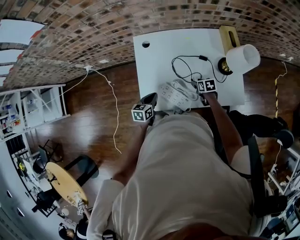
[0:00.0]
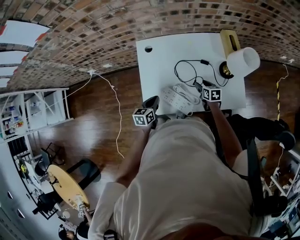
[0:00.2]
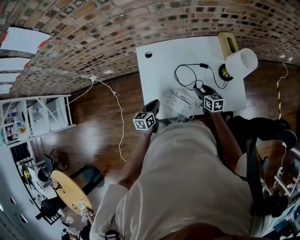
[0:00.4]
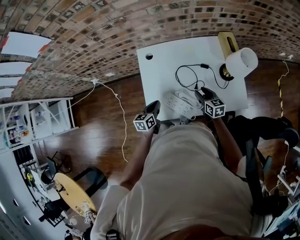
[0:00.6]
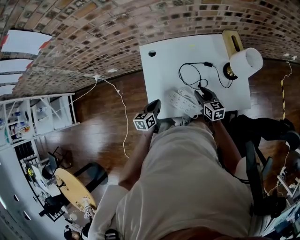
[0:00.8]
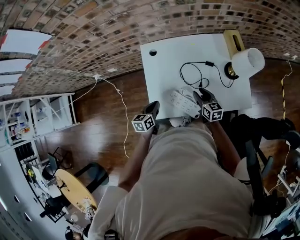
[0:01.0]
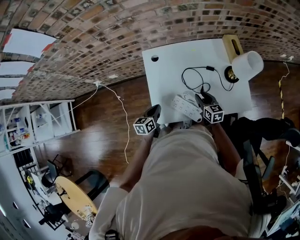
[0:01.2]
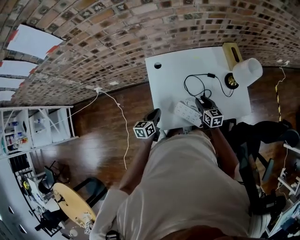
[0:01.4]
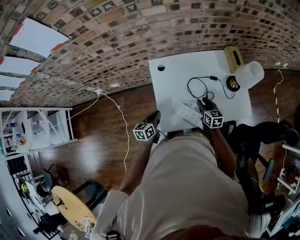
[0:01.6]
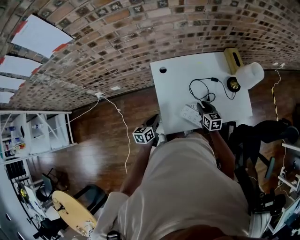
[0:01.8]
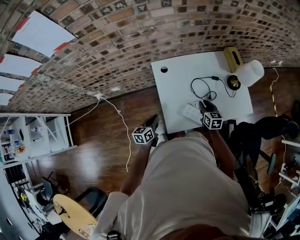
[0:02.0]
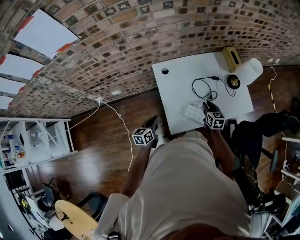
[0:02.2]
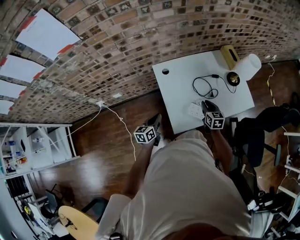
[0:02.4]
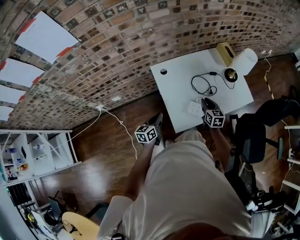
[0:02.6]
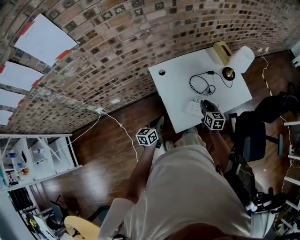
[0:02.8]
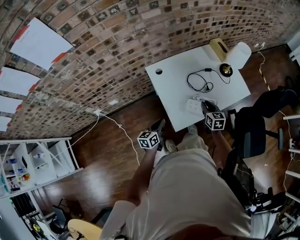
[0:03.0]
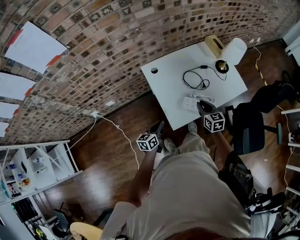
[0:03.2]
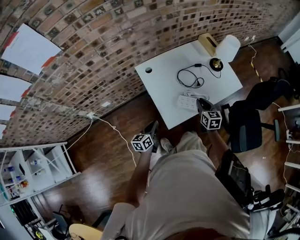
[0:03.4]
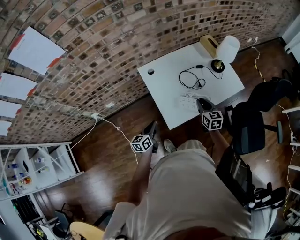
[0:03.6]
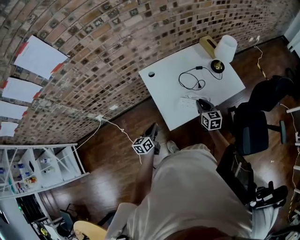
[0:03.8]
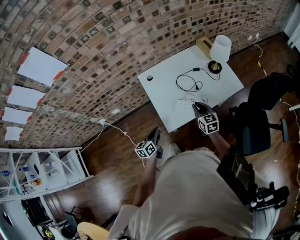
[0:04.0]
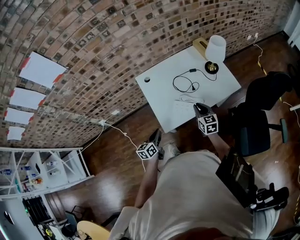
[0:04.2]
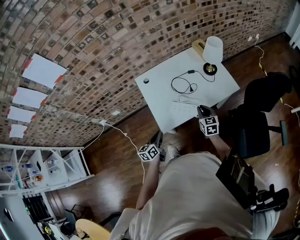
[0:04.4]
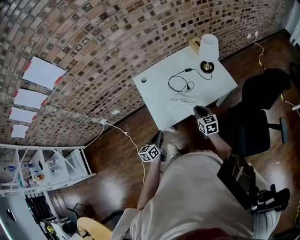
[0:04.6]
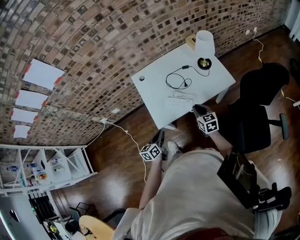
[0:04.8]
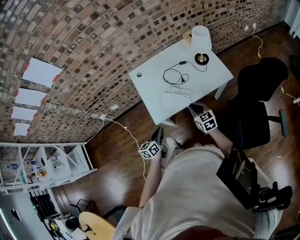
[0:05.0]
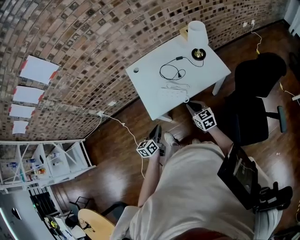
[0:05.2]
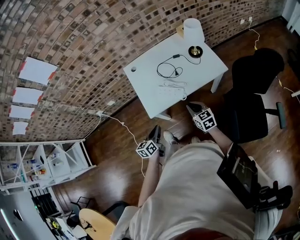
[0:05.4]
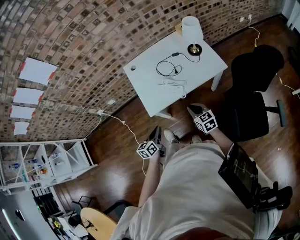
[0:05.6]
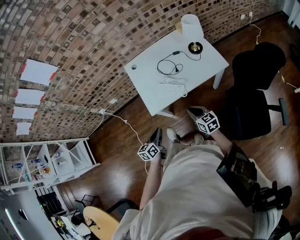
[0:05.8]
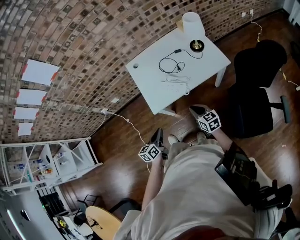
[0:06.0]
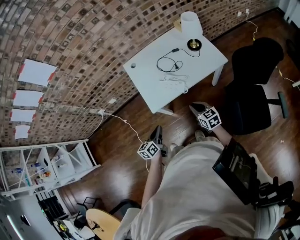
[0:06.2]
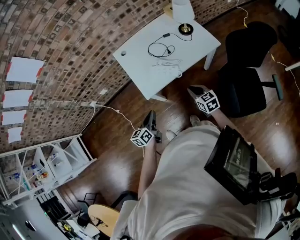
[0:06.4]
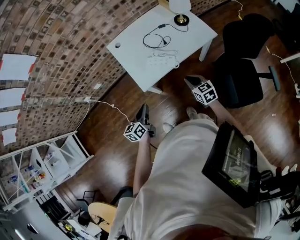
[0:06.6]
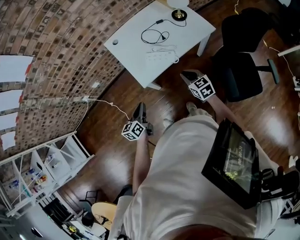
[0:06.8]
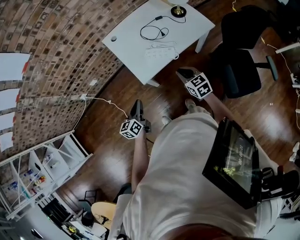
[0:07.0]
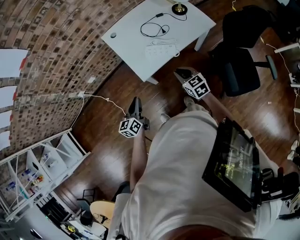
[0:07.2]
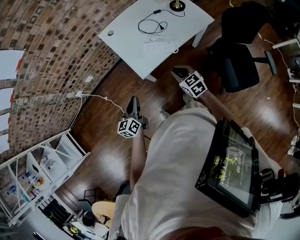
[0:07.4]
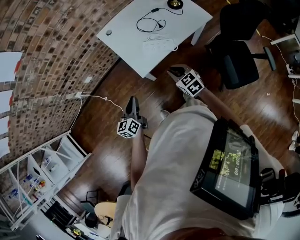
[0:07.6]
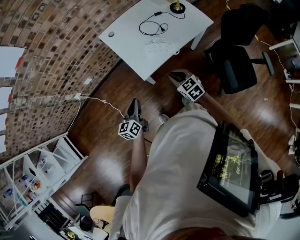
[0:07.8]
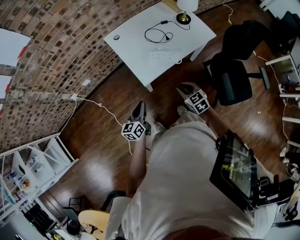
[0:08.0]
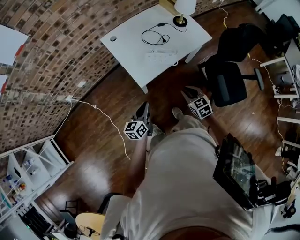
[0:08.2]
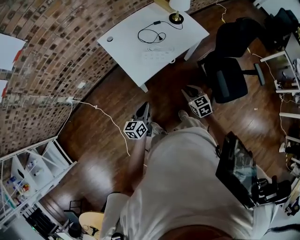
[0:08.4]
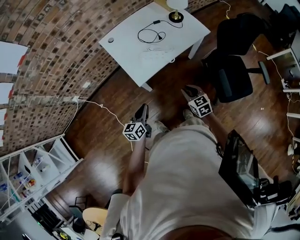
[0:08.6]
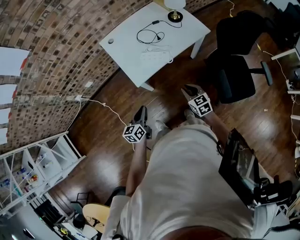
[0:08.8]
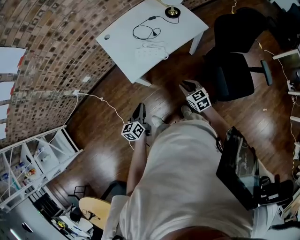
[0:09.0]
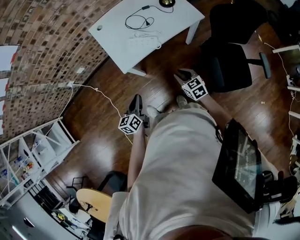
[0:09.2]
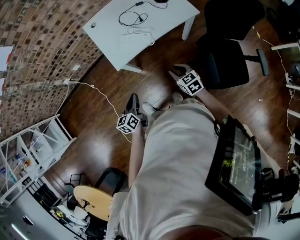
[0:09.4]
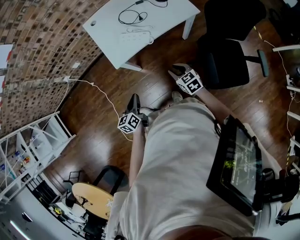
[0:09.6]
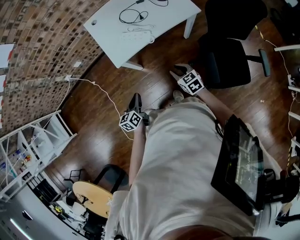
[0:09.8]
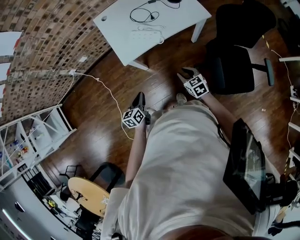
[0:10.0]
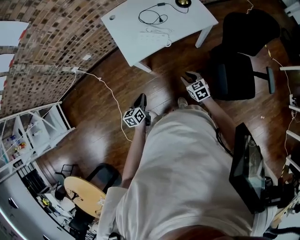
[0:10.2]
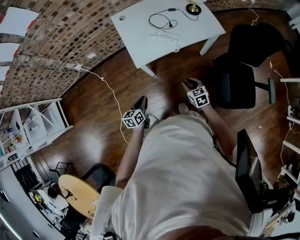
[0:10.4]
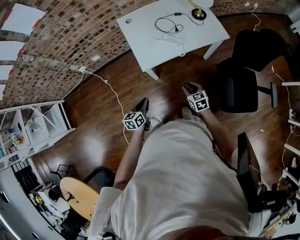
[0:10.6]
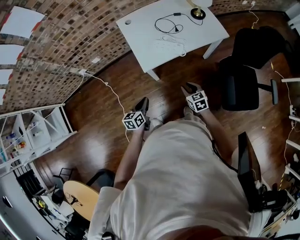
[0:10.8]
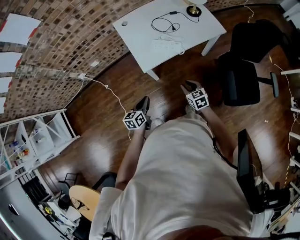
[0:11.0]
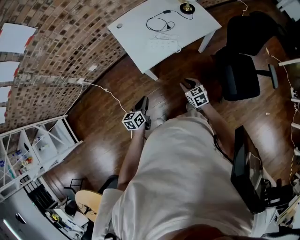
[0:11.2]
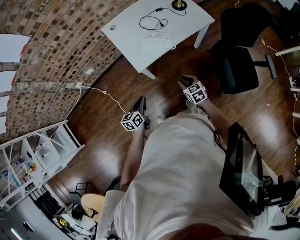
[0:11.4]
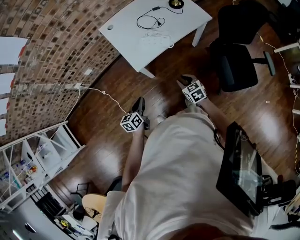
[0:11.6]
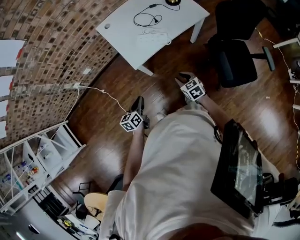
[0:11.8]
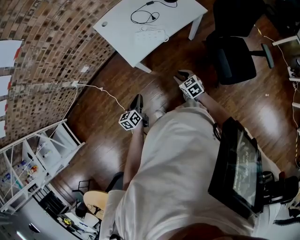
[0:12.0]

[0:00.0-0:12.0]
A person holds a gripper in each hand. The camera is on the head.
0.0 to 1.6 s: The left gripper travels to the left and upward by some 15 cm. The right gripper travels upward and to the left by approximately 20 cm, and turns by some 30 degrees.
1.6 to 3.0 s: The left gripper shifts approximately 10 cm backward and to the left; the right gripper travels backward by some 10 cm.
3.0 to 4.4 s: The right gripper goes approximately 15 cm to the right. Meanwhile the left gripper goes about 15 cm to the right and backward.
4.4 to 6.0 s: The right gripper travels backward by about 15 cm, and turns by approximately 20 degrees. Meanwhile the left gripper is displaced backward and to the right by about 15 cm.
6.0 to 7.6 s: The grippers both shift to the left by approximately 15 cm.
7.6 to 9.0 s: The two grippers go about 15 cm to the right and backward.
9.0 to 10.4 s: Both grippers travel together downward, roughly 5 cm.
10.4 to 12.0 s: Both grippers travel together to the left, some 5 cm.

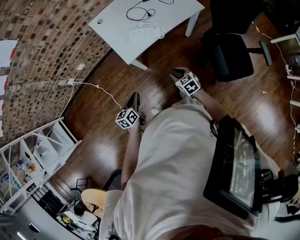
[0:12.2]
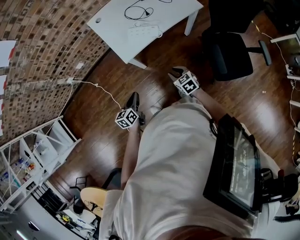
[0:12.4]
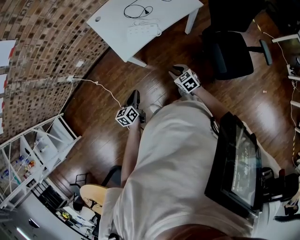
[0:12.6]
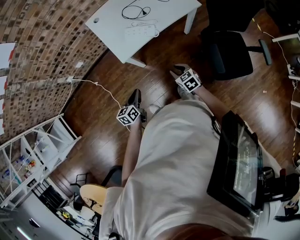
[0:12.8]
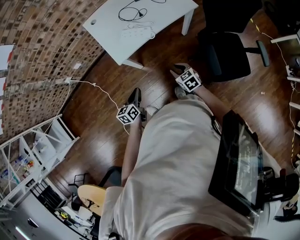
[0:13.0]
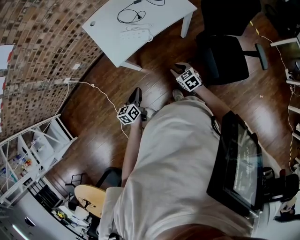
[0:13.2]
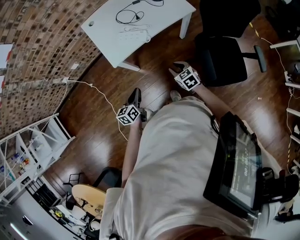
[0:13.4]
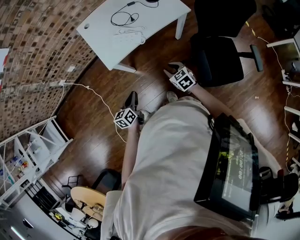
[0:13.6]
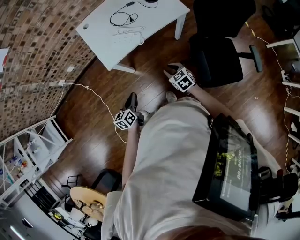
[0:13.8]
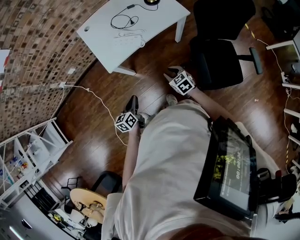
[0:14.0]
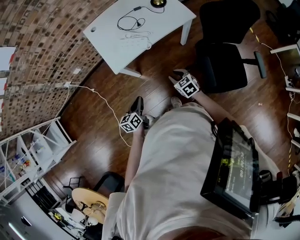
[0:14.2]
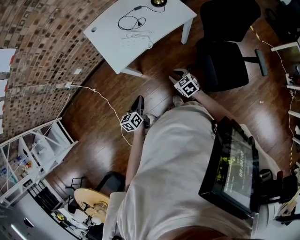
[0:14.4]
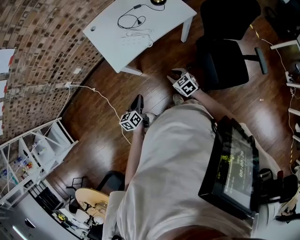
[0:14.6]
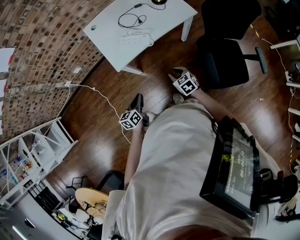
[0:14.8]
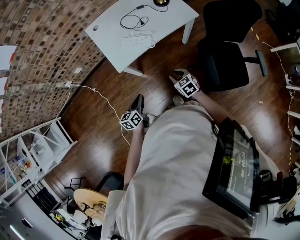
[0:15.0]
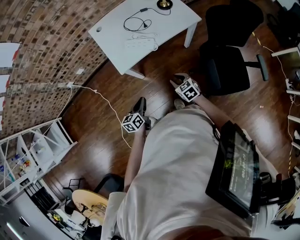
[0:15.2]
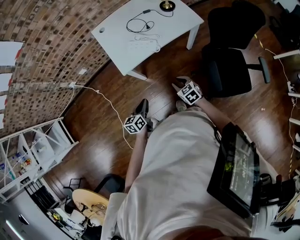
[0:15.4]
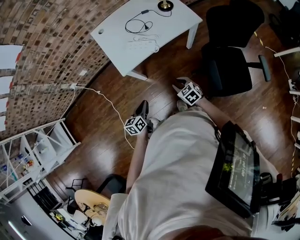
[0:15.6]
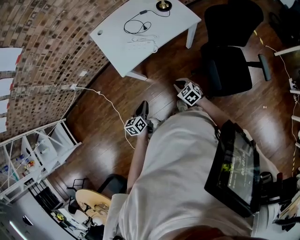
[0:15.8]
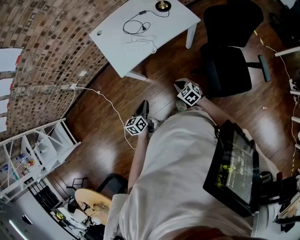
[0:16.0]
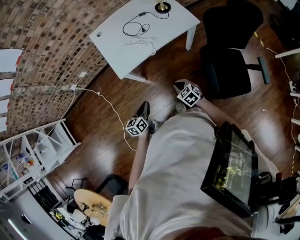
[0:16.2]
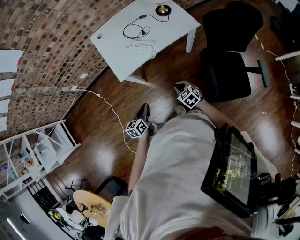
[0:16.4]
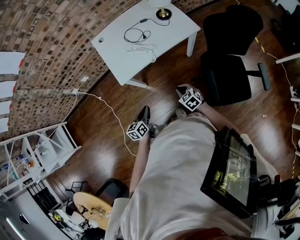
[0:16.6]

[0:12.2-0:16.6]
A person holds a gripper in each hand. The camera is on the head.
12.2 to 13.6 s: Both grippers travel together to the right, roughly 15 cm.
13.6 to 15.2 s: There are only small adjustments of the grippers.
15.2 to 16.6 s: Both grippers travel together to the right, approximately 5 cm. The right gripper closes.

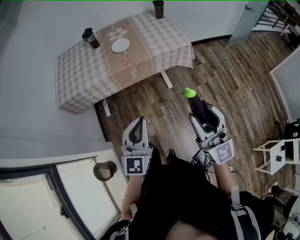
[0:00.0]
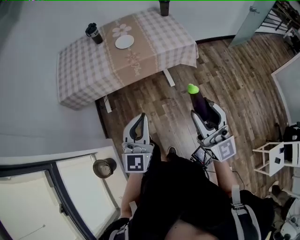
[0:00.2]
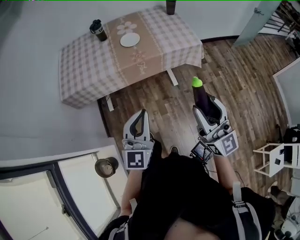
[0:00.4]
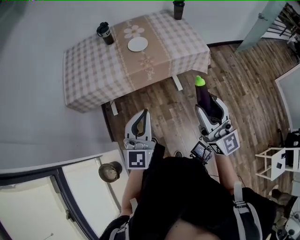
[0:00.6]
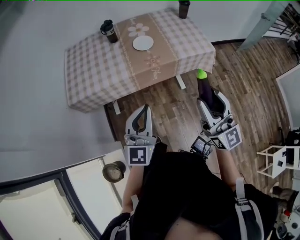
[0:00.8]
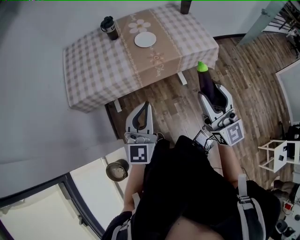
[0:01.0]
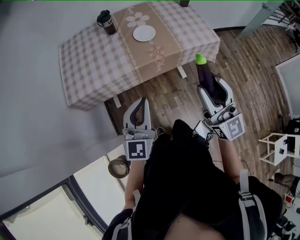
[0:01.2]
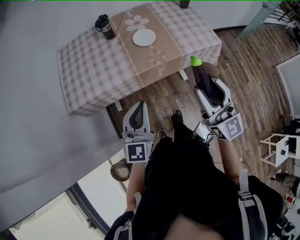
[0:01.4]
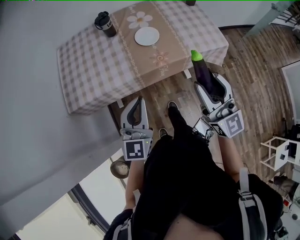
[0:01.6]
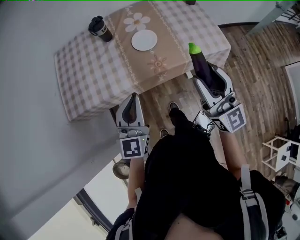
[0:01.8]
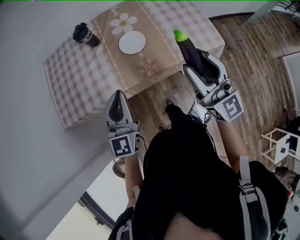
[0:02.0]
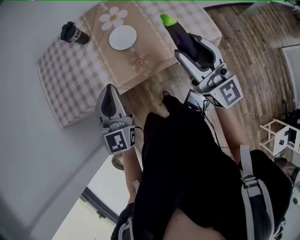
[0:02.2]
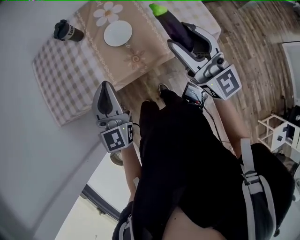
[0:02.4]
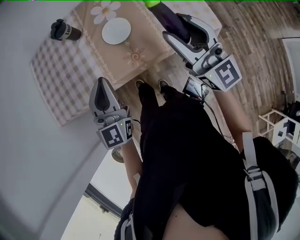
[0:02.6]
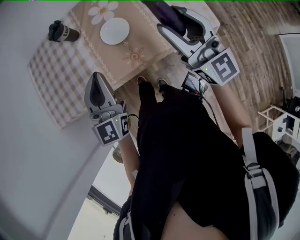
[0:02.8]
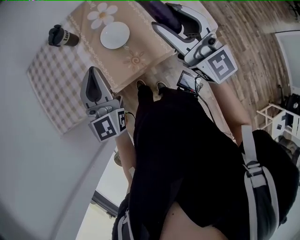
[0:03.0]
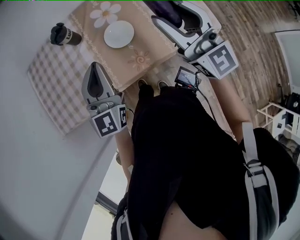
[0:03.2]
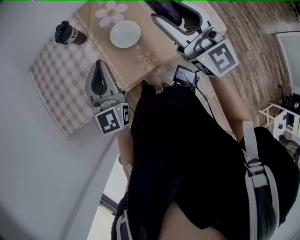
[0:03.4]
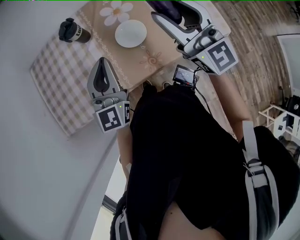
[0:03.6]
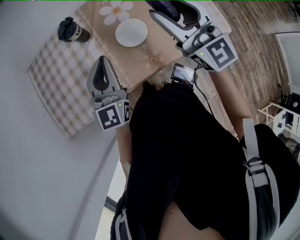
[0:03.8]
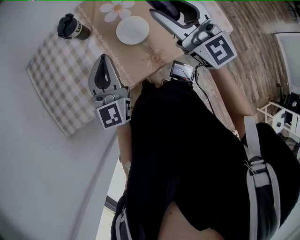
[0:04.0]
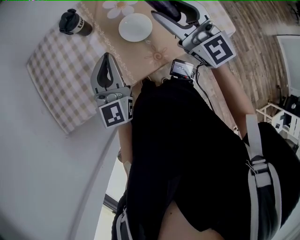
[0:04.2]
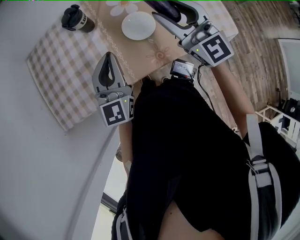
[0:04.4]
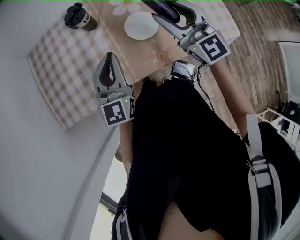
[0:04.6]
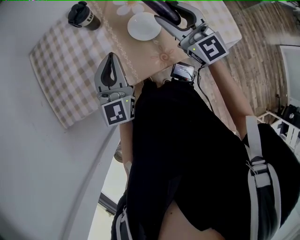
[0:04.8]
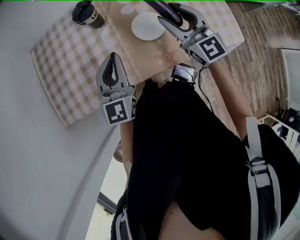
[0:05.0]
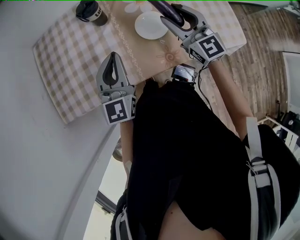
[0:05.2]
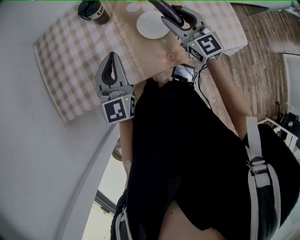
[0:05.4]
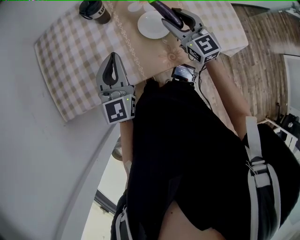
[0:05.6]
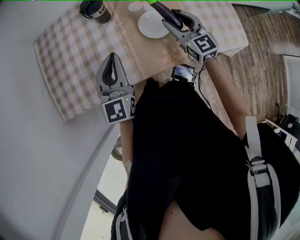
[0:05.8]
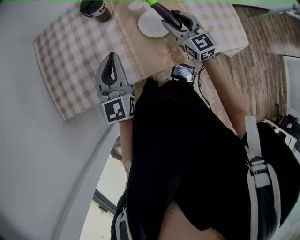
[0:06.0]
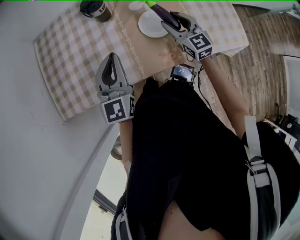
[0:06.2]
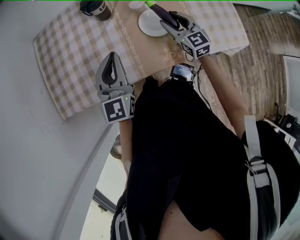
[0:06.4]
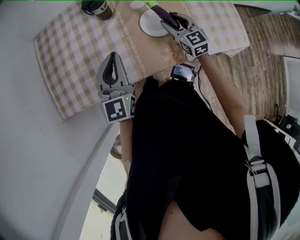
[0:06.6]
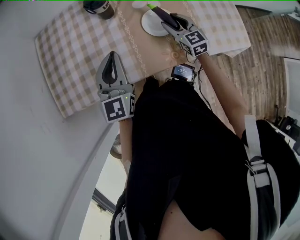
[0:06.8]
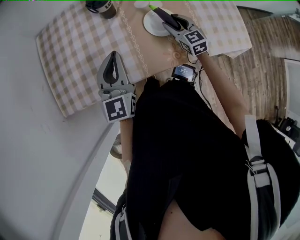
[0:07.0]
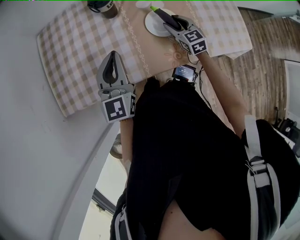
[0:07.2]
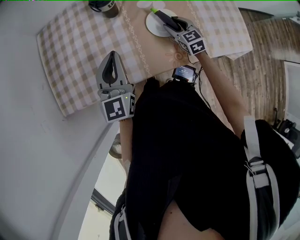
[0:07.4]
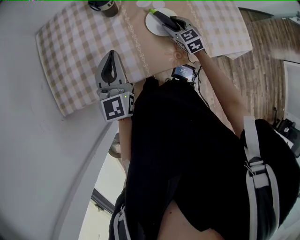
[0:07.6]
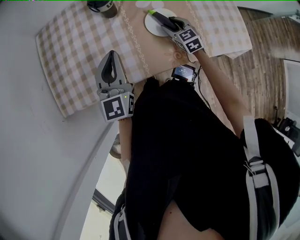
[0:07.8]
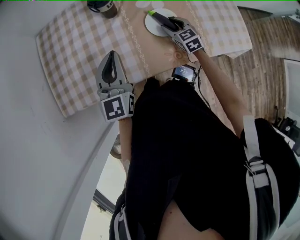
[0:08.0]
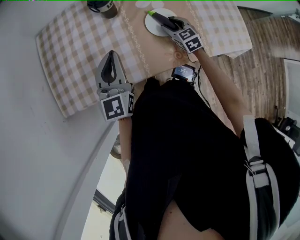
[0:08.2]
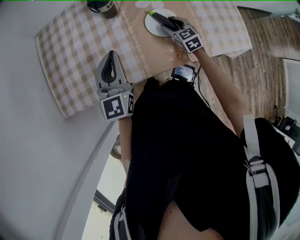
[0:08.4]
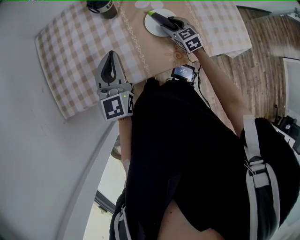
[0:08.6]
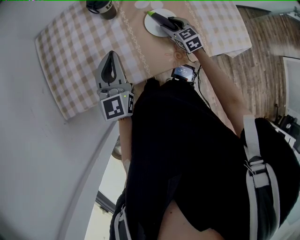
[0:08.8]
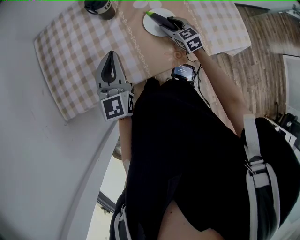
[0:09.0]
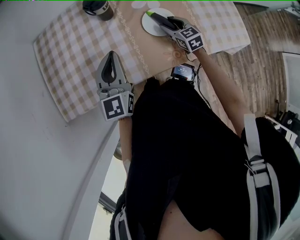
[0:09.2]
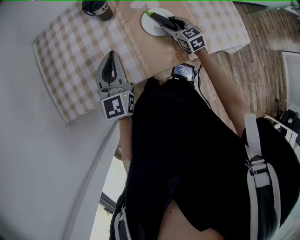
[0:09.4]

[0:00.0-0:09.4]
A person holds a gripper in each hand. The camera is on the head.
0.0 to 1.6 s: The grippers both shift forward and to the left by approximately 35 cm.
1.6 to 3.2 s: The grippers both shift forward by roughly 25 cm.
3.2 to 4.8 s: The left gripper is displaced to the left and downward by roughly 10 cm. Meanwhile the right gripper heads downward, forward and to the left, covering some 15 cm.
4.8 to 6.2 s: The right gripper is displaced downward by roughly 15 cm.
6.2 to 7.8 s: The right gripper is displaced downward by some 10 cm.
7.8 to 9.4 s: The grippers make only small movements.
